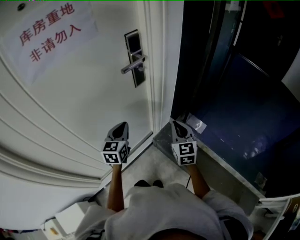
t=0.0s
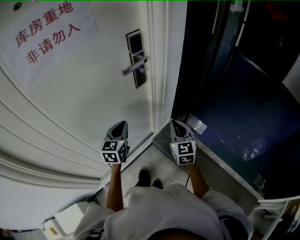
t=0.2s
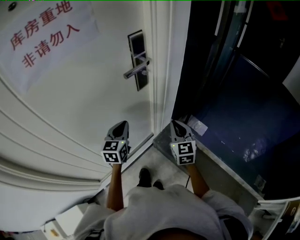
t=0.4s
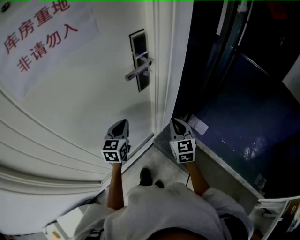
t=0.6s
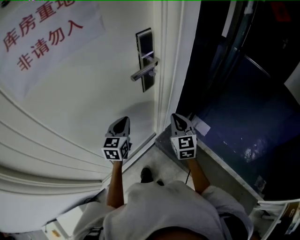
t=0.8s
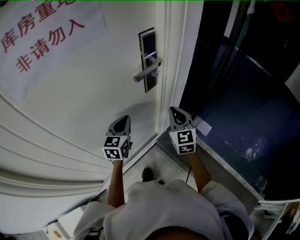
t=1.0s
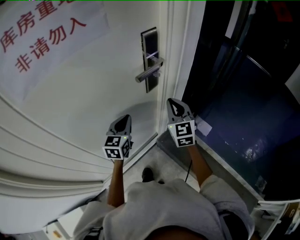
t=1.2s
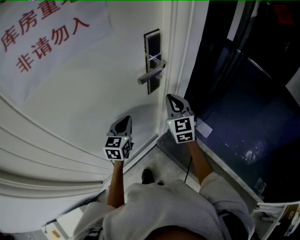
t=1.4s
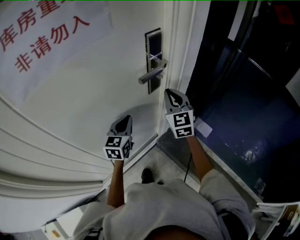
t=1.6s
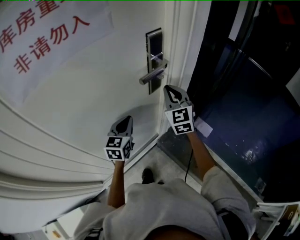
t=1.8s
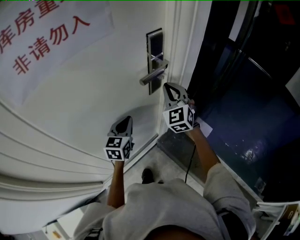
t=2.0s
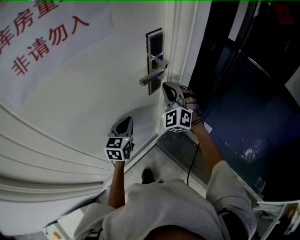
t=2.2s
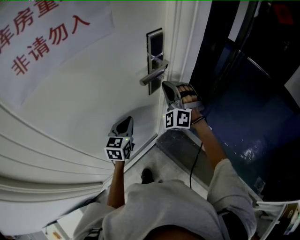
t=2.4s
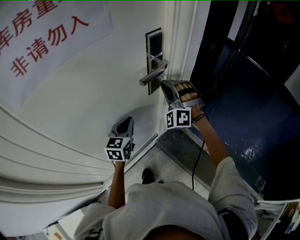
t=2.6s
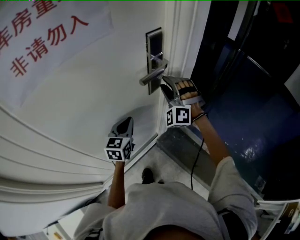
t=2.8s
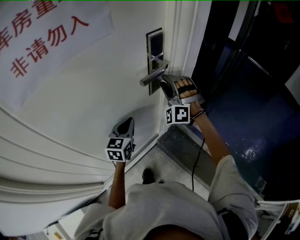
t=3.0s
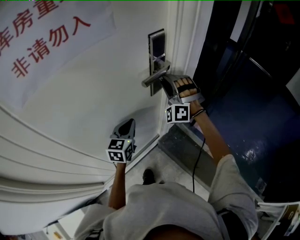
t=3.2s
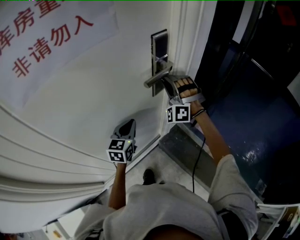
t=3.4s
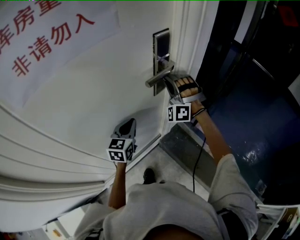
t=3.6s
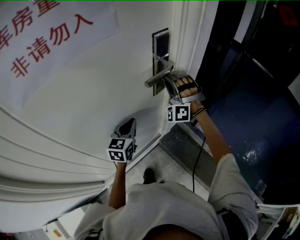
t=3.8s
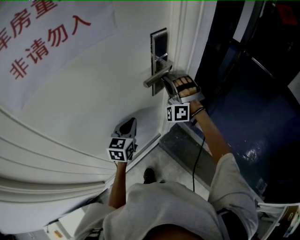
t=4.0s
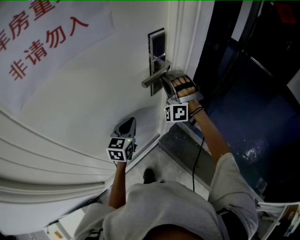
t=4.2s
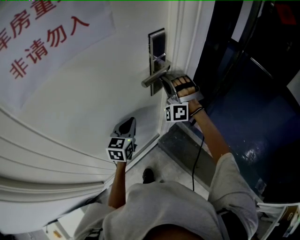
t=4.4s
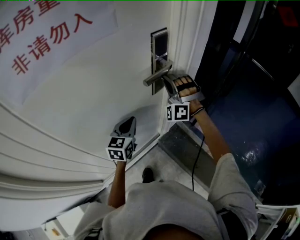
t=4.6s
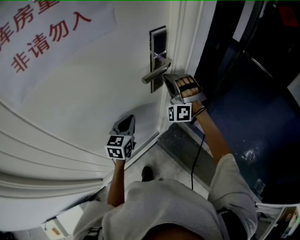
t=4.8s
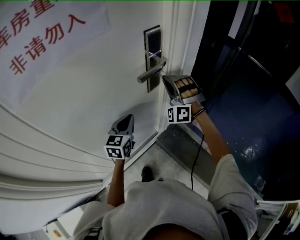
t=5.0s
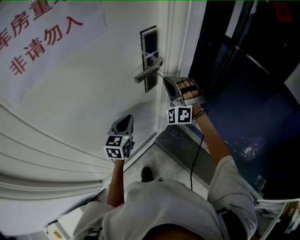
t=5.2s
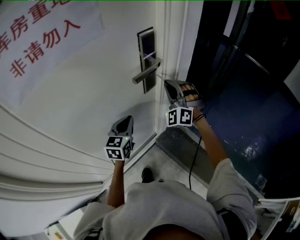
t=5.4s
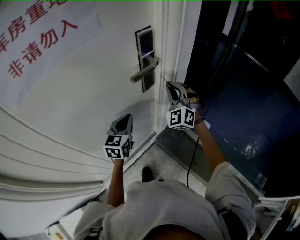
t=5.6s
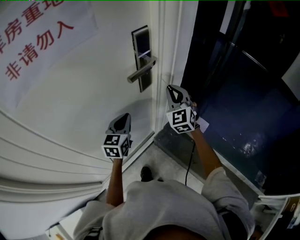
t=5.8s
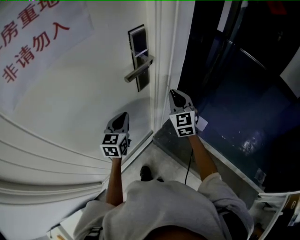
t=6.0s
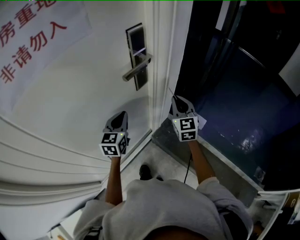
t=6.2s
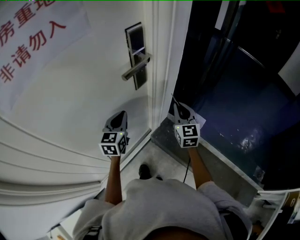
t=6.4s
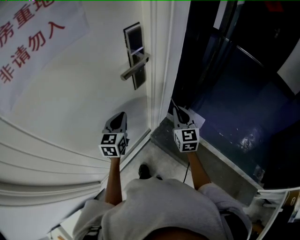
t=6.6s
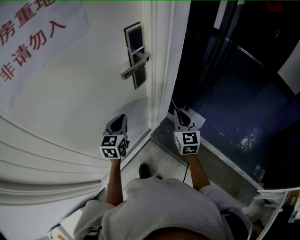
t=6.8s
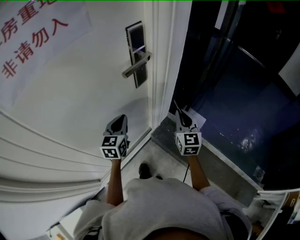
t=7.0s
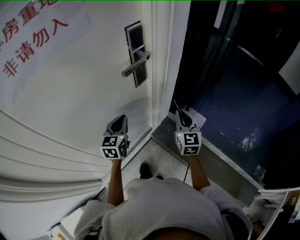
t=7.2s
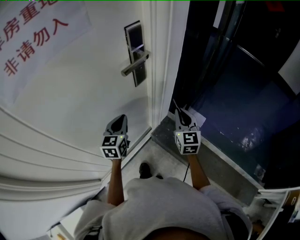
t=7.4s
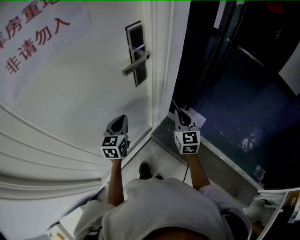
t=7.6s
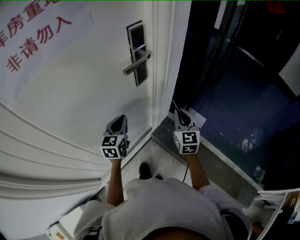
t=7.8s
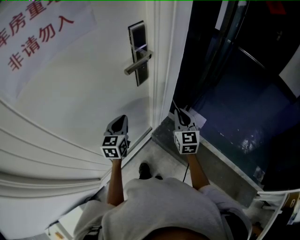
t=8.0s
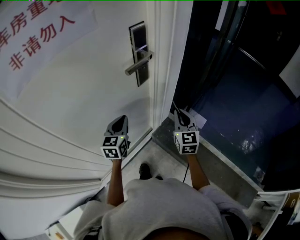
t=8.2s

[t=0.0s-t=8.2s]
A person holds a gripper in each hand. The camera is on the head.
t=0.0s to t=1.6s: The left gripper shifts approximately 10 cm forward and to the left. Meanwhile the right gripper heads forward, to the left and upward, covering some 25 cm.
t=1.6s to t=3.2s: The right gripper heads forward, covering about 5 cm, rotates around the line of its fingers by approximately 70 degrees, counterclockwise from behind, and opens up.
t=3.2s to t=5.0s: The right gripper closes up.
t=5.0s to t=6.6s: The right gripper goes approximately 20 cm to the right, backward and downward, and rolls clockwise, seen from behind, by some 80 degrees.
t=6.6s to t=8.2s: The grippers stay close to where they were, moving slightly.

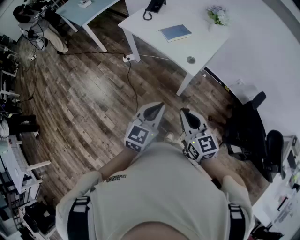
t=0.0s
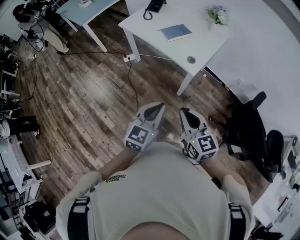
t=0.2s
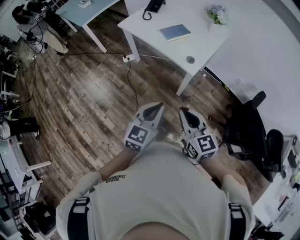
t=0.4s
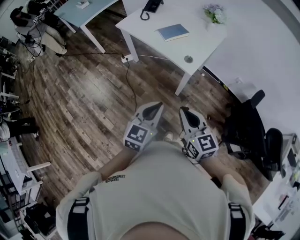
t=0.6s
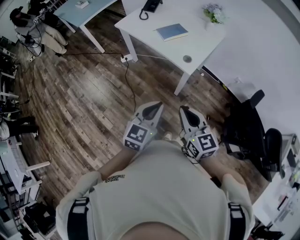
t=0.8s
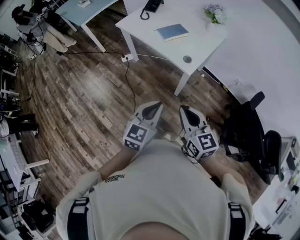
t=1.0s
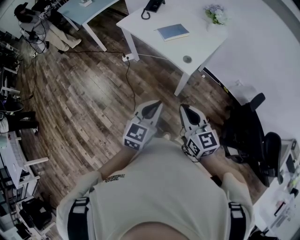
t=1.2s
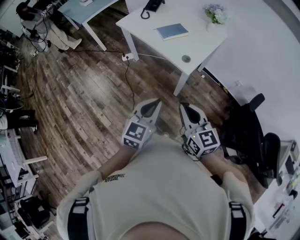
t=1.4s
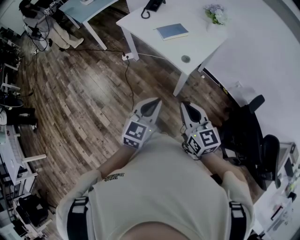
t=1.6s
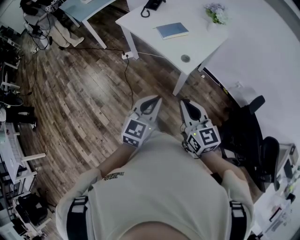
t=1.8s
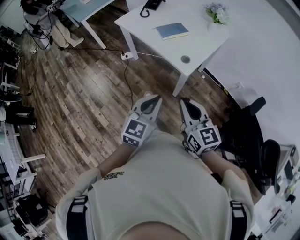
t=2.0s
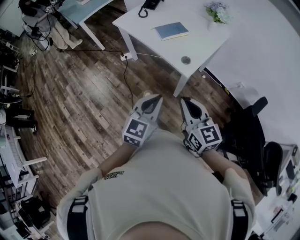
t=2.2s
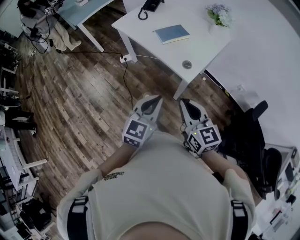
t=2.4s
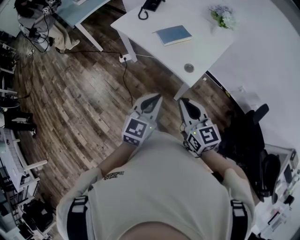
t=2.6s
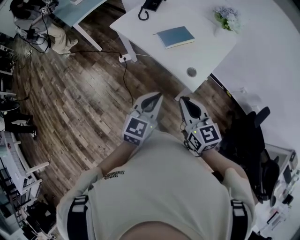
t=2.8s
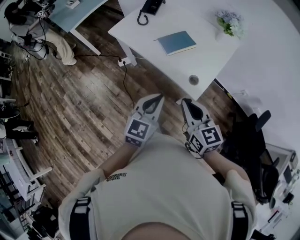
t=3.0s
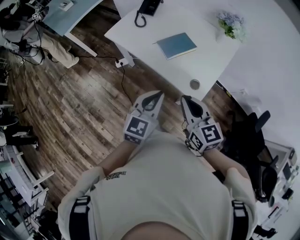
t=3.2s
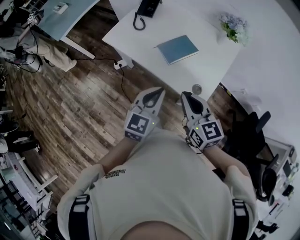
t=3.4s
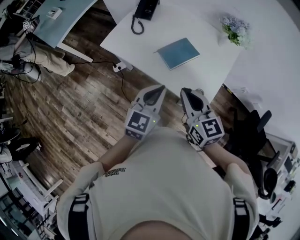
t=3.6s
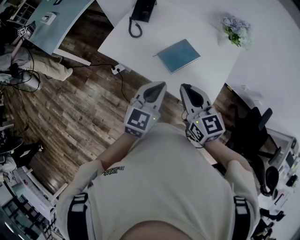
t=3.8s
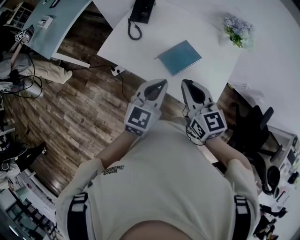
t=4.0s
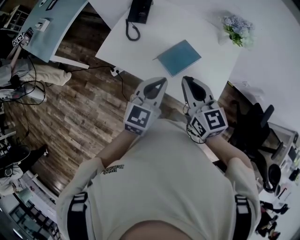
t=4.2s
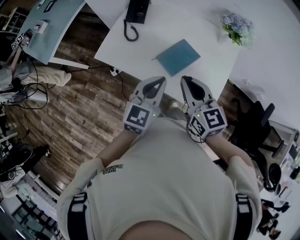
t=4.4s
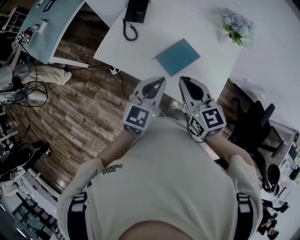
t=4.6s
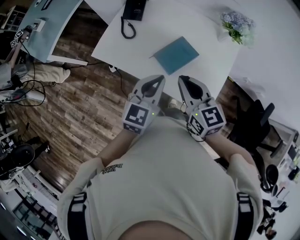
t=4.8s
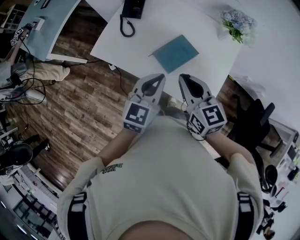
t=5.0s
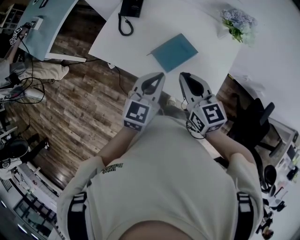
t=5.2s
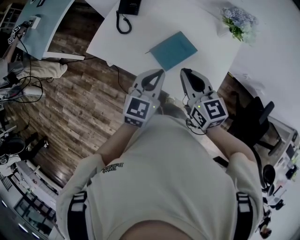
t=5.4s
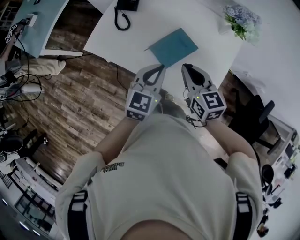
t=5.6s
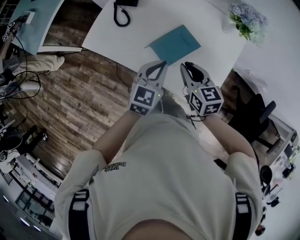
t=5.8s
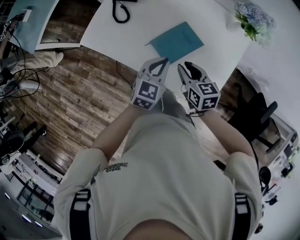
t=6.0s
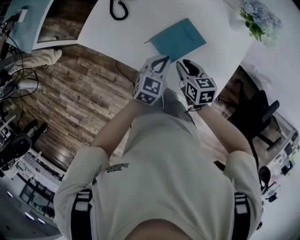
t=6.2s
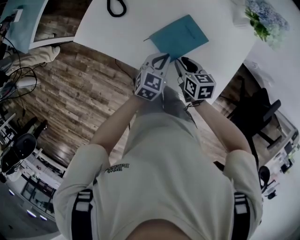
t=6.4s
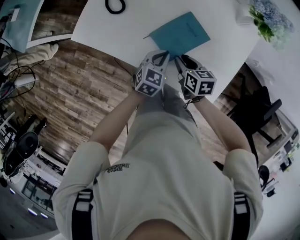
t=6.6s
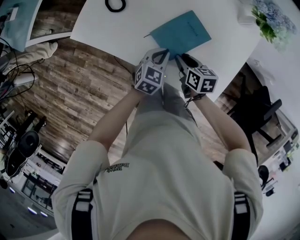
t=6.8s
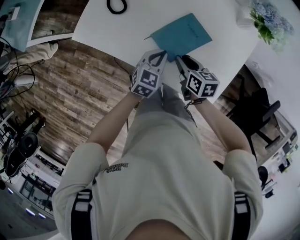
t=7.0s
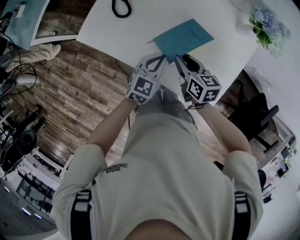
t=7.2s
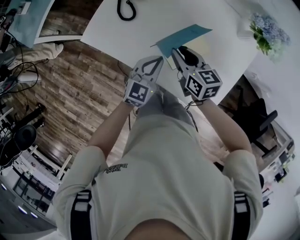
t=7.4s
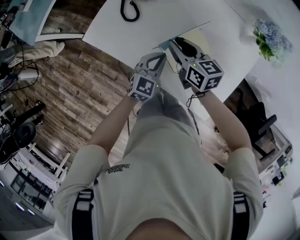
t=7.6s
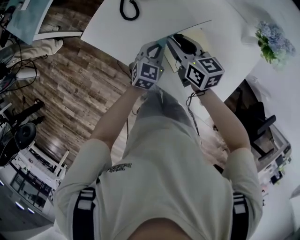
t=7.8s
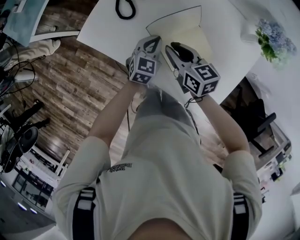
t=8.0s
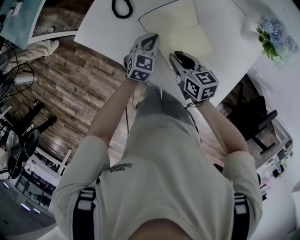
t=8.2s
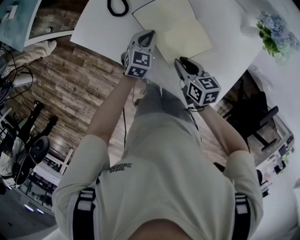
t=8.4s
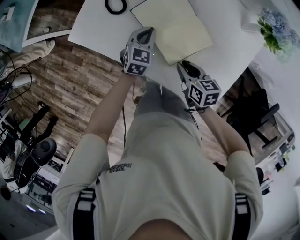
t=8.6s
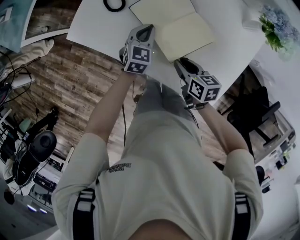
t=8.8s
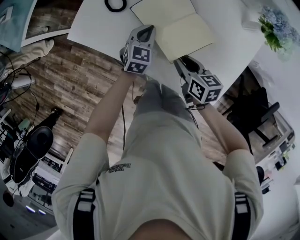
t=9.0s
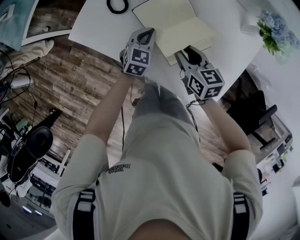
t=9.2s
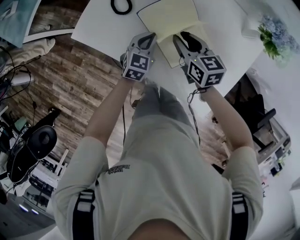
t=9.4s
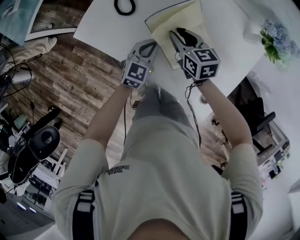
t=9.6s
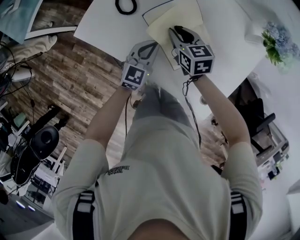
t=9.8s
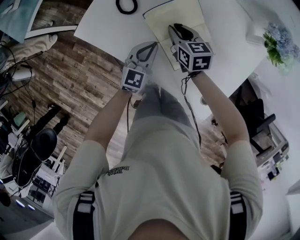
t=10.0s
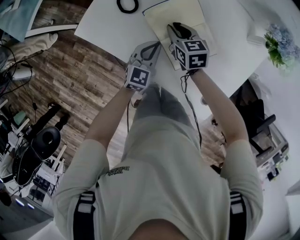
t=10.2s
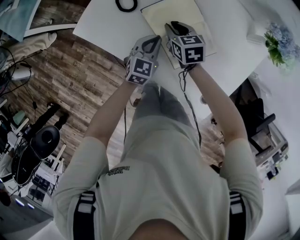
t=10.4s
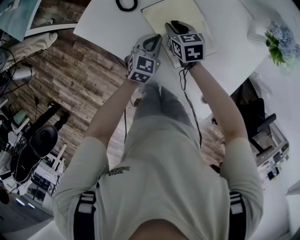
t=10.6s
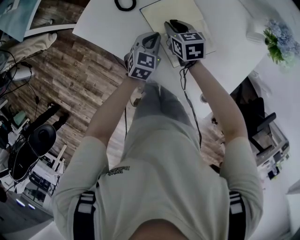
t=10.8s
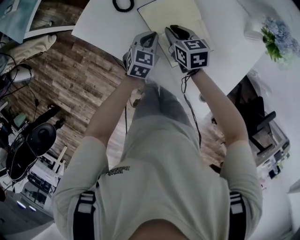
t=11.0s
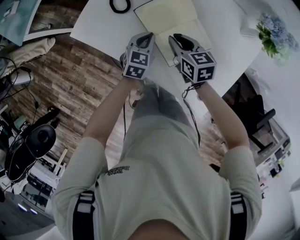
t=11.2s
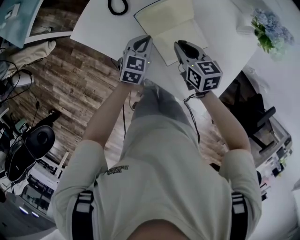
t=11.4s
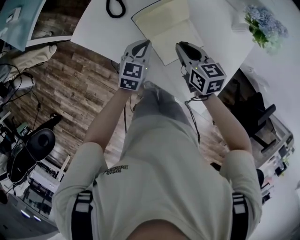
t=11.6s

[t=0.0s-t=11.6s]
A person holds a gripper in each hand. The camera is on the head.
t=0.0s to t=1.4s: The right gripper goes some 5 cm to the right.
t=1.4s to t=2.8s: The grippers both shift forward by approximately 20 cm.
t=2.8s to t=4.4s: Both grippers travel together forward, approximately 30 cm.
t=4.4s to t=5.8s: The grippers both shift downward and forward by roughly 15 cm.
t=5.8s to t=7.2s: Both grippers travel together downward, some 10 cm.
t=7.2s to t=8.8s: The left gripper moves forward and downward, approximately 15 cm. The right gripper moves downward, approximately 5 cm, and moves approximately 10 cm forward and comes back.
t=8.8s to t=10.2s: The left gripper ends up some 5 cm from where it was. Meanwhile the right gripper travels forward by some 15 cm, and swivels about 30 degrees.
t=10.2s to t=11.6s: The right gripper moves backward, upward and to the right, approximately 15 cm.

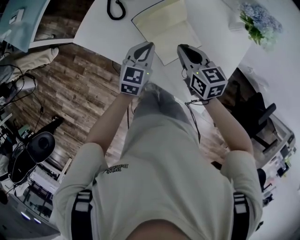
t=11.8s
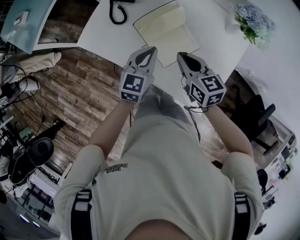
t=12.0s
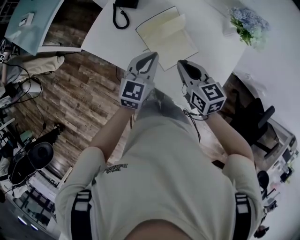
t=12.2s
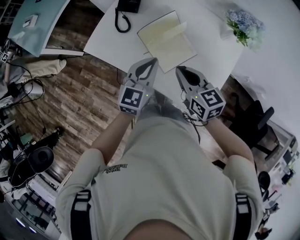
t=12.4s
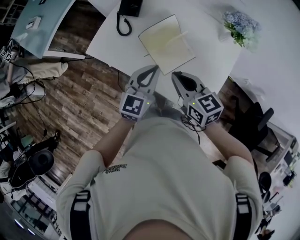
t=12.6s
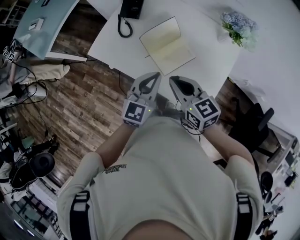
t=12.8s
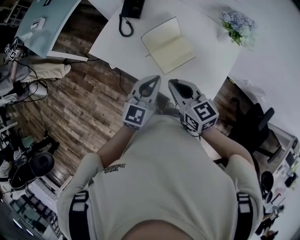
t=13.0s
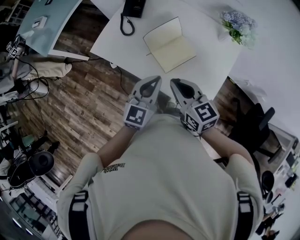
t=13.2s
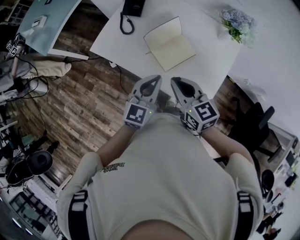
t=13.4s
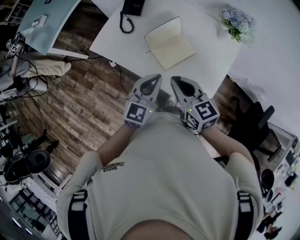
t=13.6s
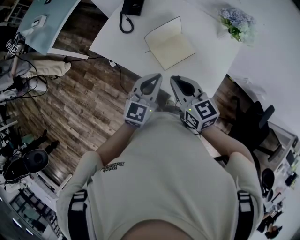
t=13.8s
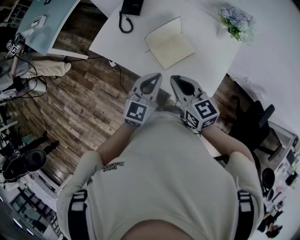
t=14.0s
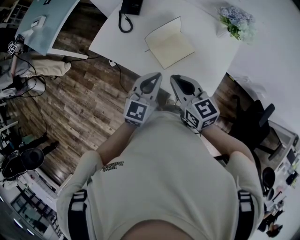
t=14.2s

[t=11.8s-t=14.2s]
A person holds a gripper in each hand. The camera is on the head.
t=11.8s to t=13.0s: The left gripper heads upward and backward, covering approximately 20 cm; the right gripper moves backward and upward, some 15 cm.
t=13.0s to t=14.2s: The grippers make only small movements.

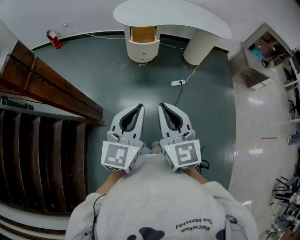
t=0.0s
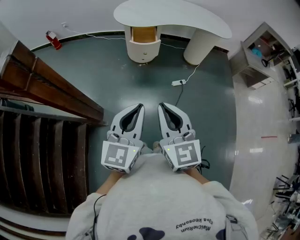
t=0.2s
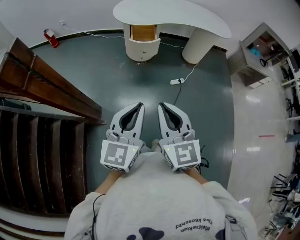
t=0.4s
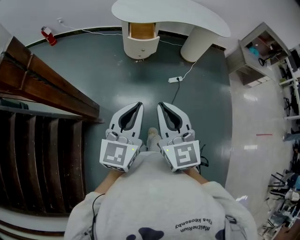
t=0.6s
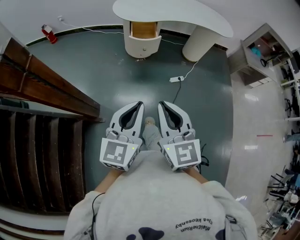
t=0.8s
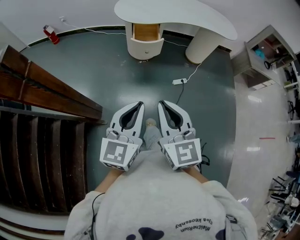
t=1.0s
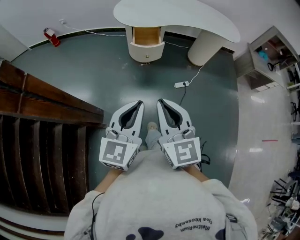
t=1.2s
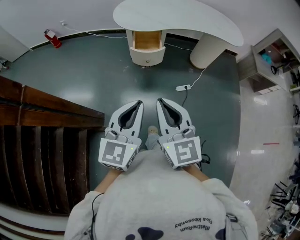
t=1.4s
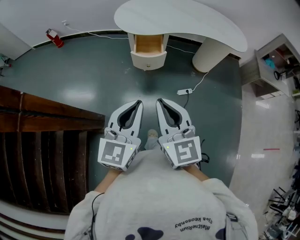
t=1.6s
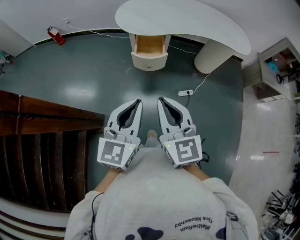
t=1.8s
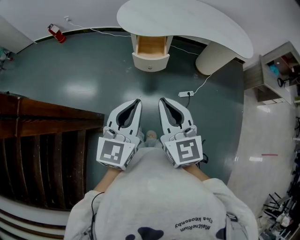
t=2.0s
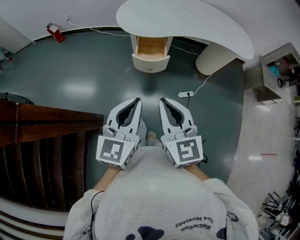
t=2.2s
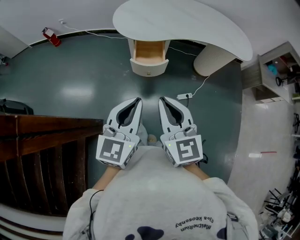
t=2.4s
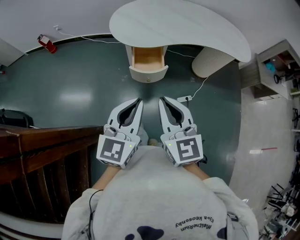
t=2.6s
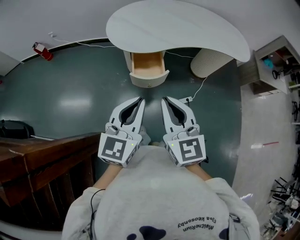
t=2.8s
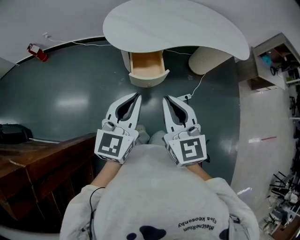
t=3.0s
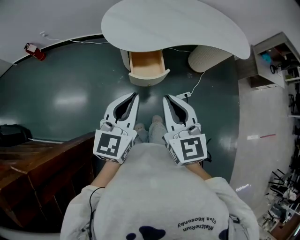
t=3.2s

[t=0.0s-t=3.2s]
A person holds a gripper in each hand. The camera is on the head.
t=0.0s to t=1.6s: Both grippers travel together forward, about 20 cm.
t=1.6s to t=3.2s: The two grippers go some 25 cm forward.
